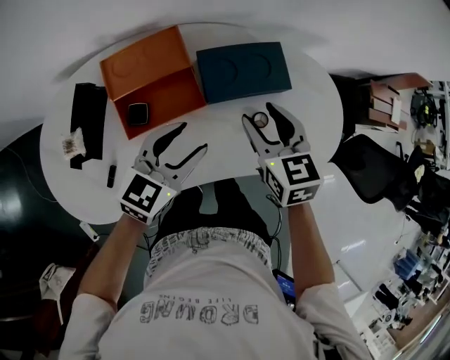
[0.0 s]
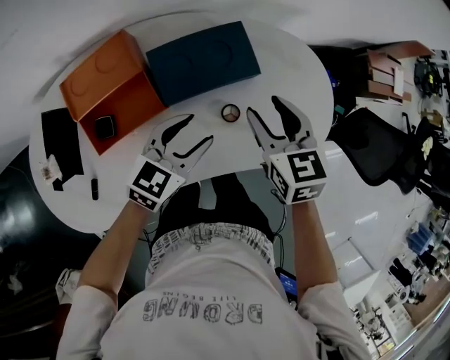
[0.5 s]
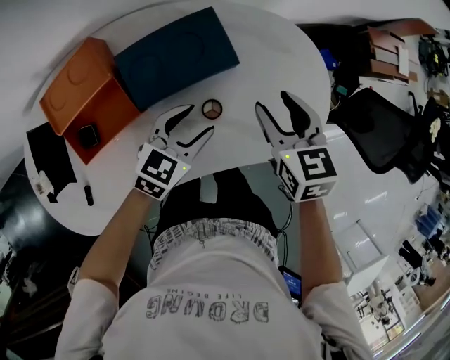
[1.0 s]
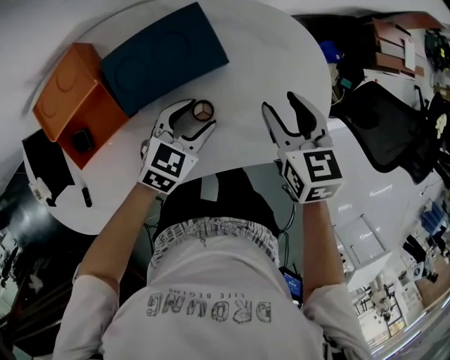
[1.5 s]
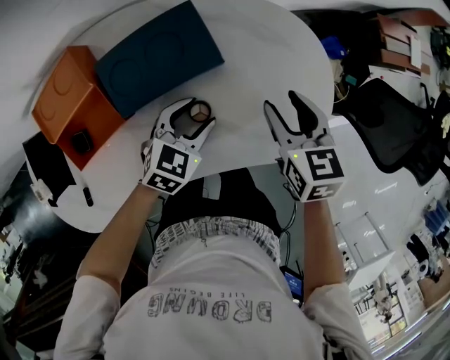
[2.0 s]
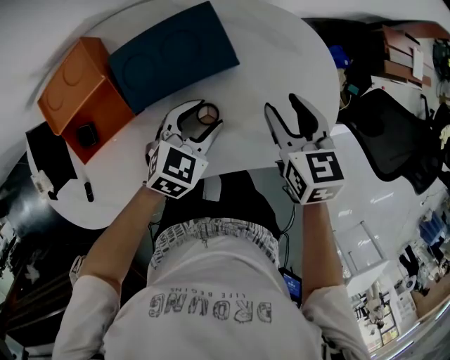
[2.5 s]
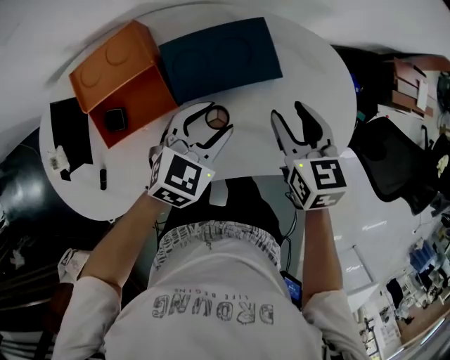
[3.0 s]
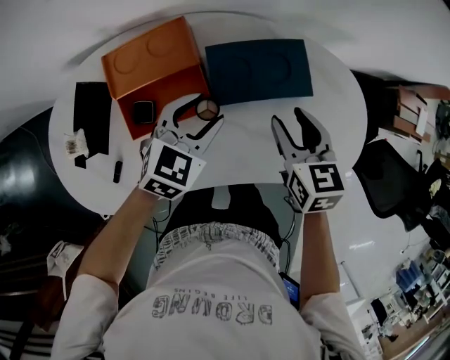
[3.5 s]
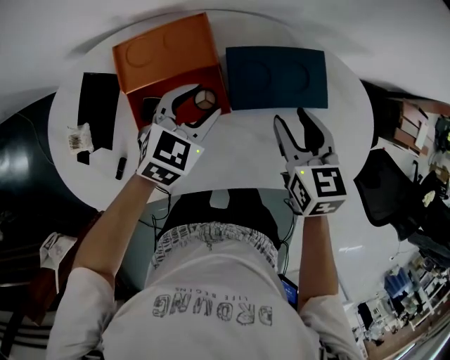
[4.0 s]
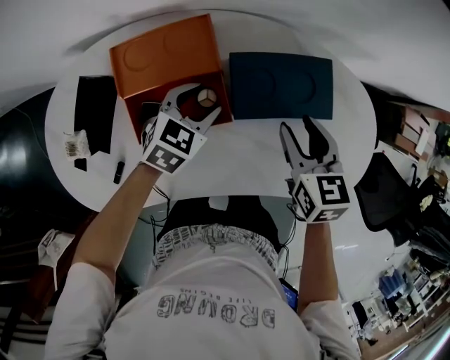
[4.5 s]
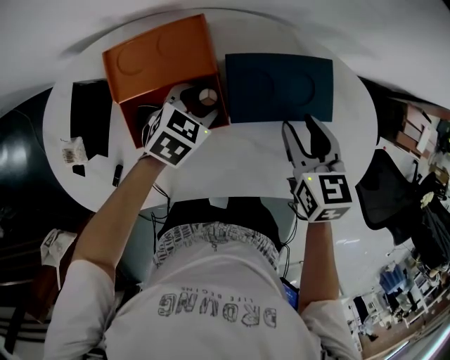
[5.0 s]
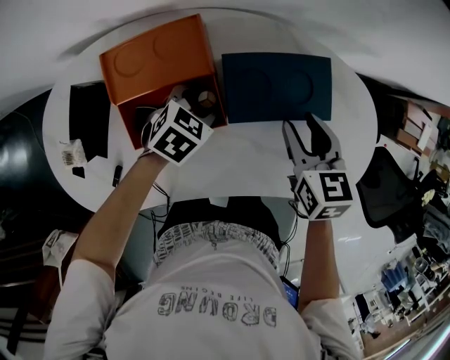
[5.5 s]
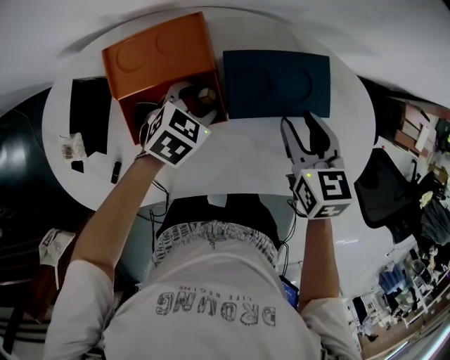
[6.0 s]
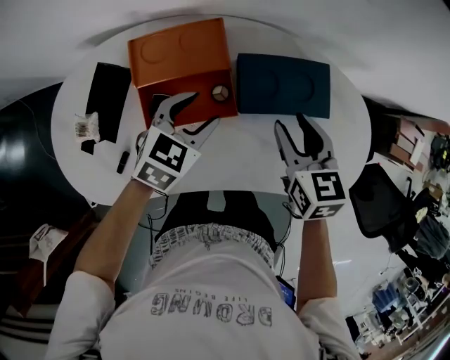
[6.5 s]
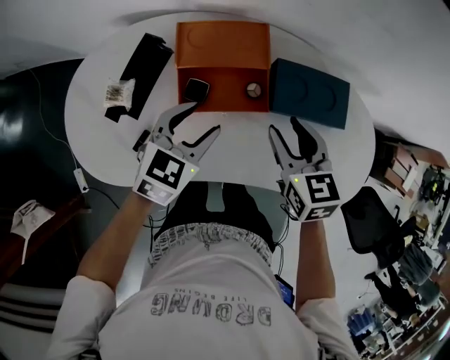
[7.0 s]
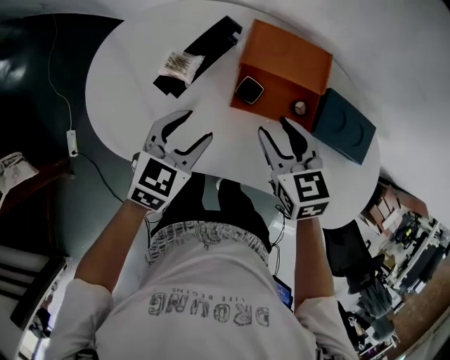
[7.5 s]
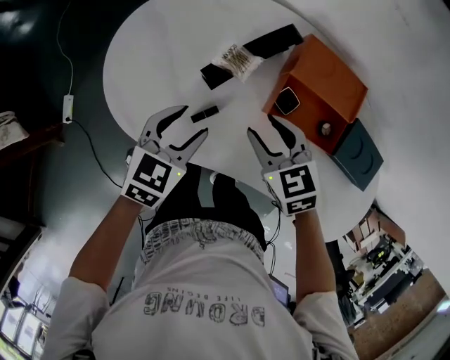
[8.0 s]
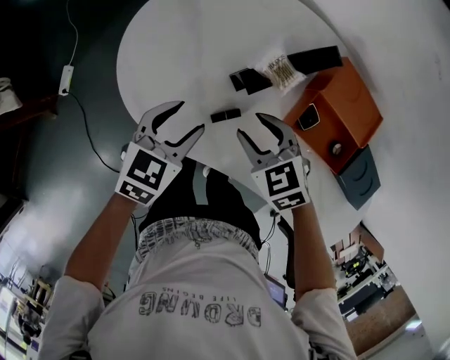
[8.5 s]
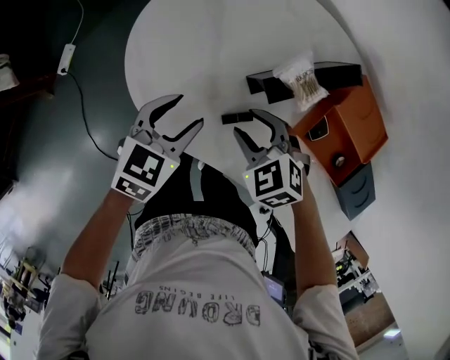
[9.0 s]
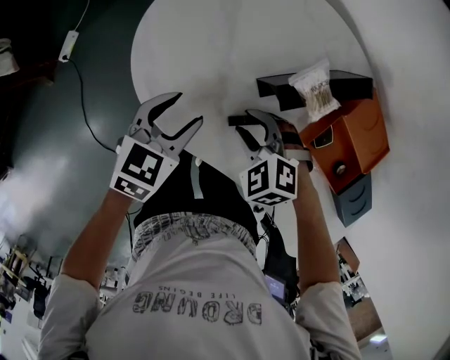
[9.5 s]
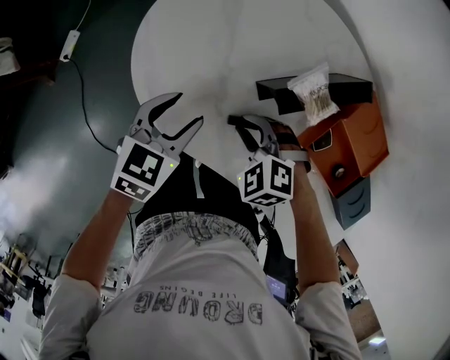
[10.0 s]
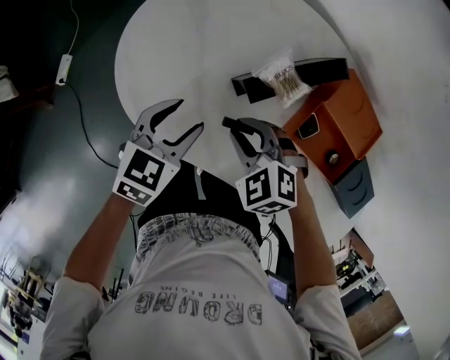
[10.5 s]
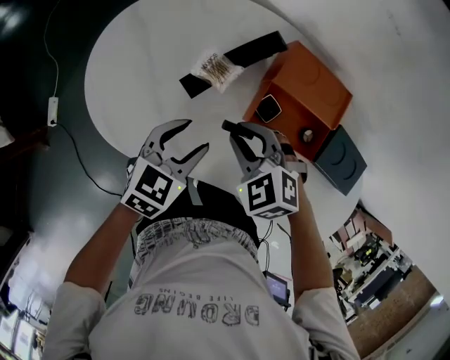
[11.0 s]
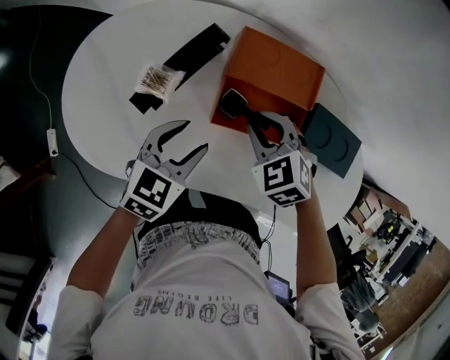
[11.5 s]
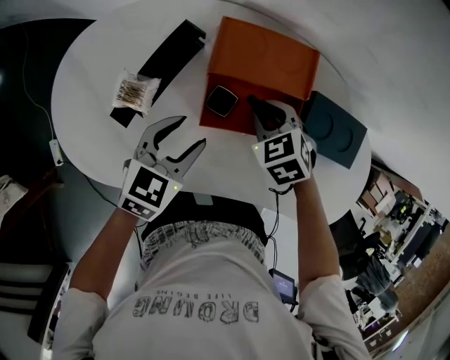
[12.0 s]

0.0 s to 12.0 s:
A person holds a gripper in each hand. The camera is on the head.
0.0 to 2.0 s: The left gripper is displaced to the right, downward and forward by about 25 cm, and turns by some 30 degrees. Meanwhile the right gripper goes roughly 25 cm to the right and downward.
2.0 to 4.0 s: The right gripper shifts approximately 20 cm to the left. Meanwhile the left gripper goes approximately 25 cm to the left and upward.
4.0 to 6.0 s: The left gripper shifts some 10 cm downward.
6.0 to 8.0 s: The left gripper moves approximately 40 cm, and rotates approximately 50 degrees. Meanwhile the right gripper changes place by approximately 40 cm, and swivels some 60 degrees.
8.0 to 10.0 s: The grippers both shift to the left and downward by some 15 cm. The right gripper rolls counterclockwise, seen from behind, by some 50 degrees.
10.0 to 12.0 s: The left gripper moves some 25 cm, and changes its angle by approximately 30 degrees, while the right gripper ends up about 30 cm from where it was, and rotates around the line of its fingers by some 50 degrees, clockwise from behind.

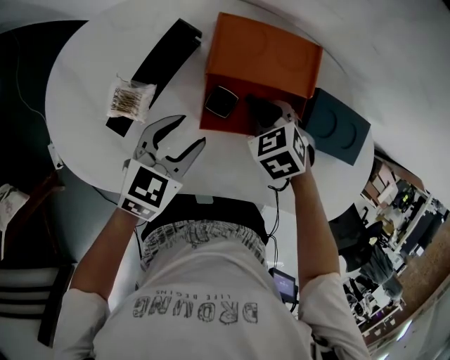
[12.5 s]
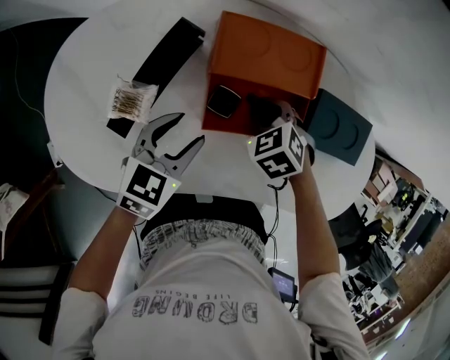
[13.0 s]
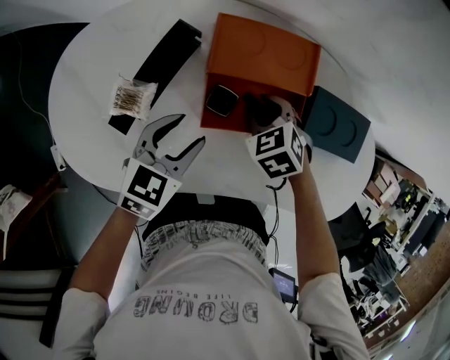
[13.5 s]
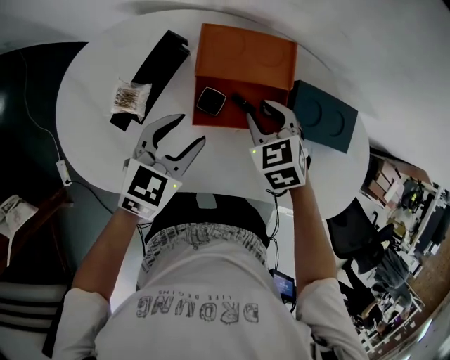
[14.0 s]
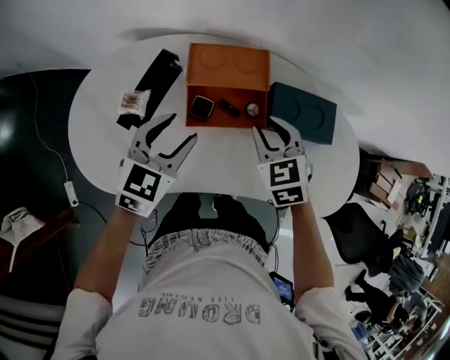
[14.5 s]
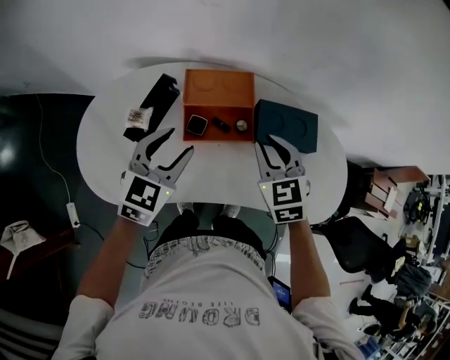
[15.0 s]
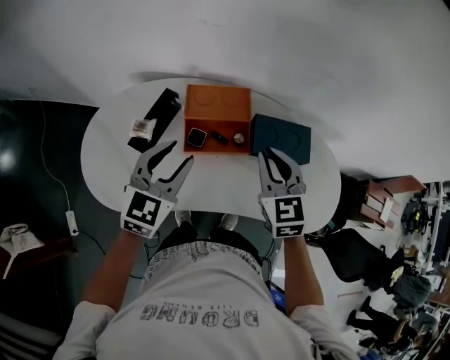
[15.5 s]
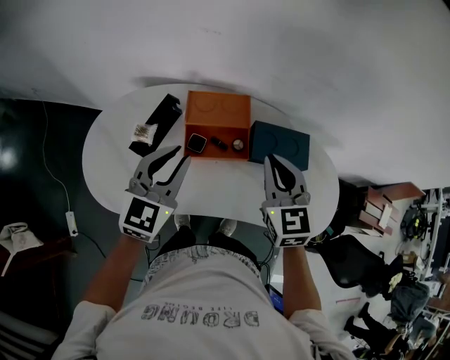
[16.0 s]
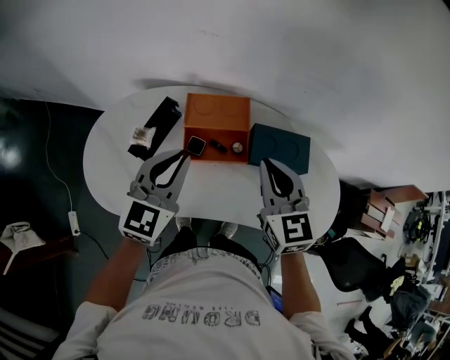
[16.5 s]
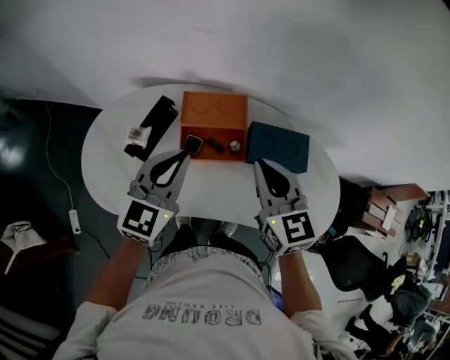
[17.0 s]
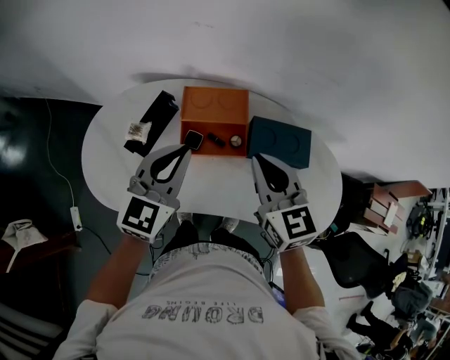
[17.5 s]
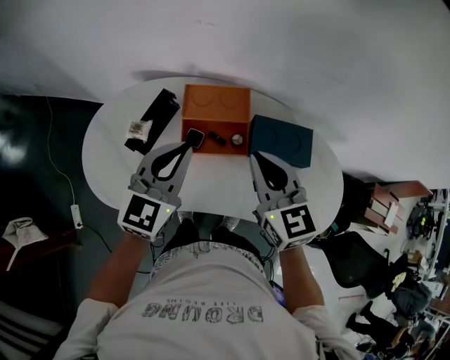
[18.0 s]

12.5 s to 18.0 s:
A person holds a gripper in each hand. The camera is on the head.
12.5 to 14.5 s: The right gripper heads upward and to the right, covering roughly 15 cm, and rotates some 30 degrees, while the left gripper is displaced upward by roughly 10 cm.
14.5 to 16.0 s: Both grippers travel together upward, about 15 cm. The left gripper closes, while the right gripper swivels roughly 20 degrees, and closes.
16.0 to 18.0 s: There are only small adjustments of the grippers.

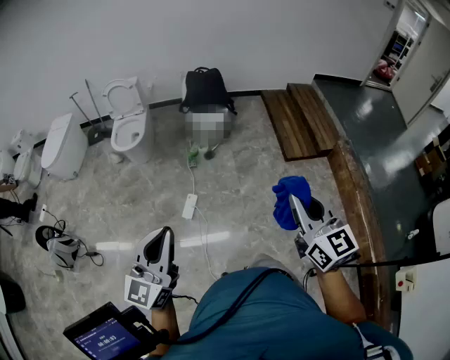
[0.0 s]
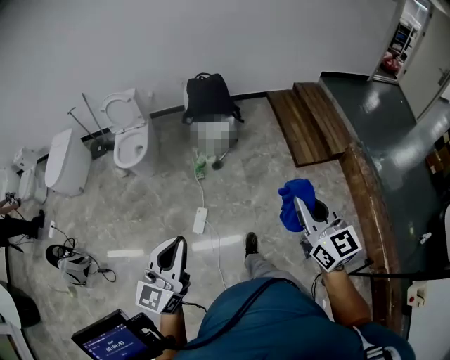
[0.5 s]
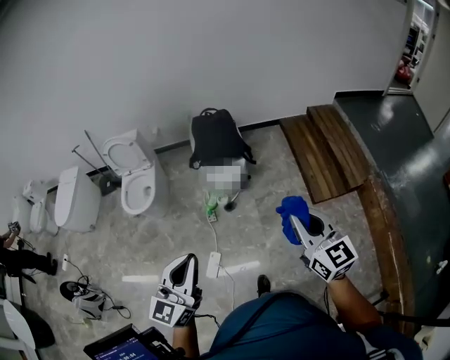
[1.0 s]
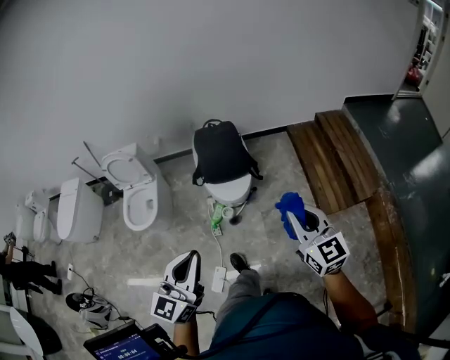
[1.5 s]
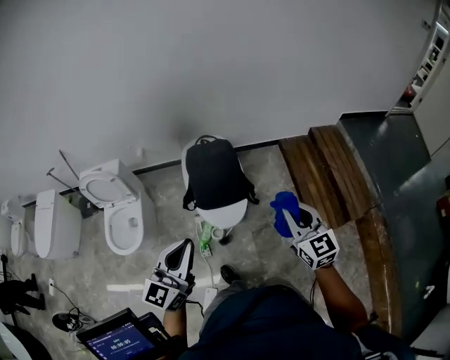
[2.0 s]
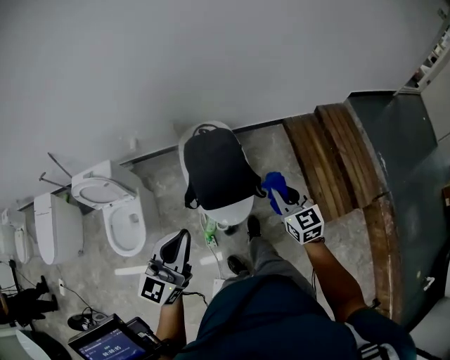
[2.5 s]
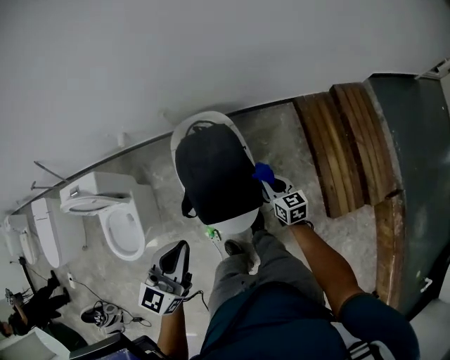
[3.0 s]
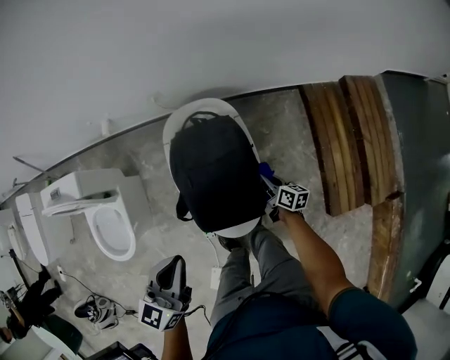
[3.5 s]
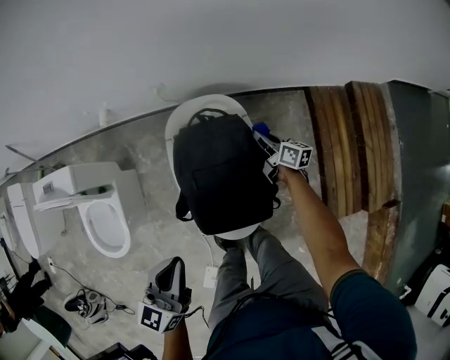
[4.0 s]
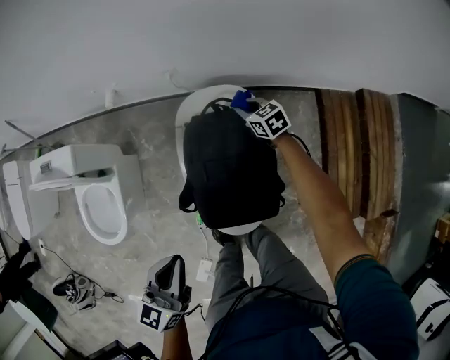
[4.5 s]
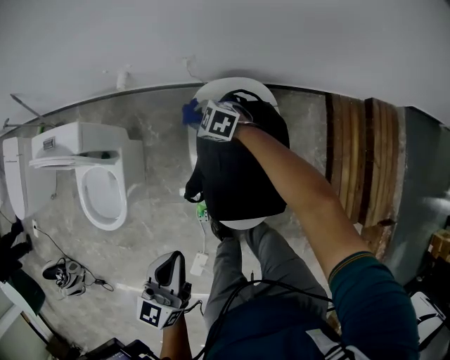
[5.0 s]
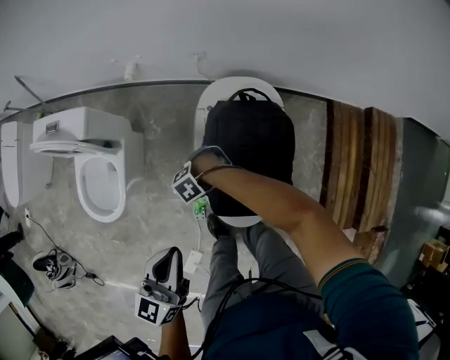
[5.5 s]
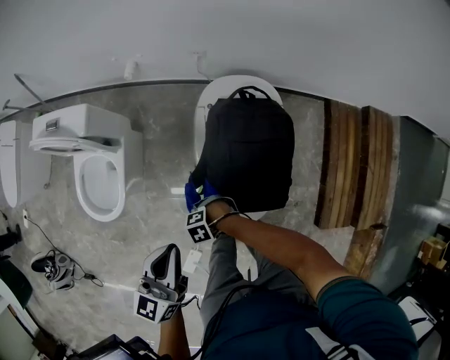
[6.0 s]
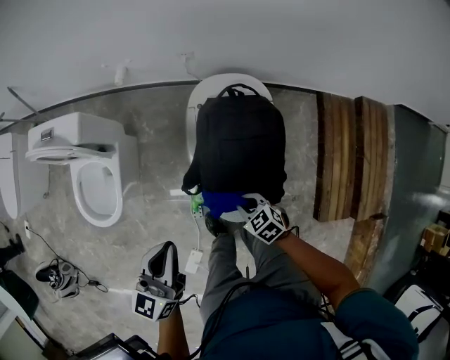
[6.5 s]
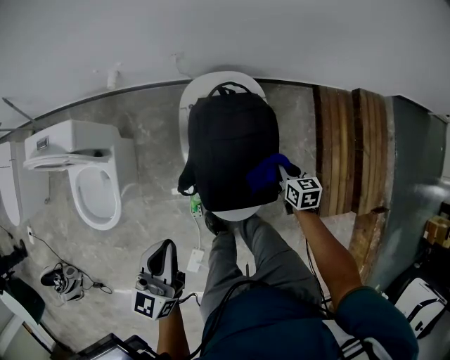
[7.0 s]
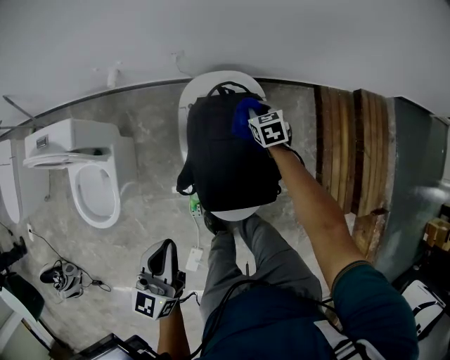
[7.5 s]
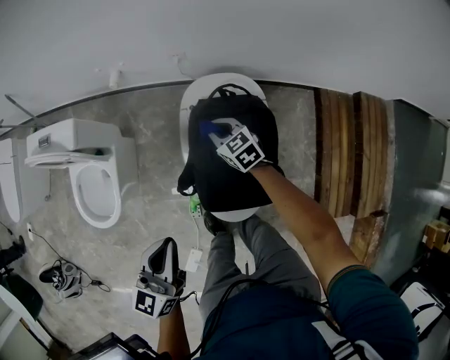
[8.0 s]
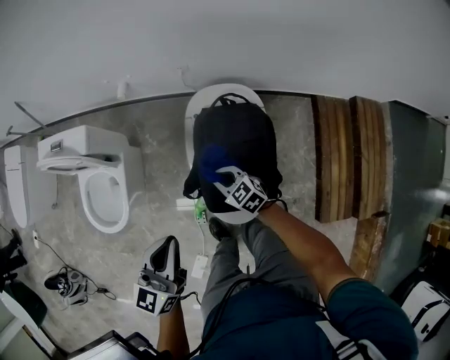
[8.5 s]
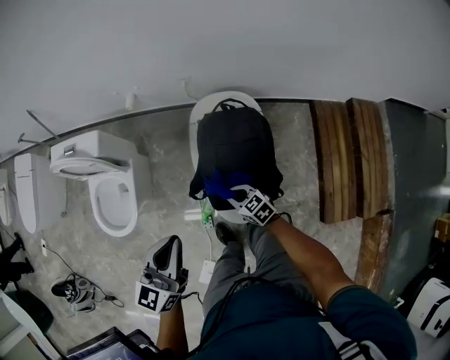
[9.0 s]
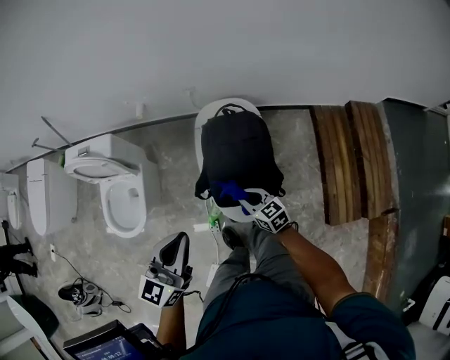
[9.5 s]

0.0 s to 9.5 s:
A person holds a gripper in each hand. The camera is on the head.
0.0 to 2.0 s: Both grippers are carried forward, about 70 cm.
2.0 to 4.0 s: The left gripper travels forward and downward by some 40 cm, and rotates approximately 30 degrees. Meanwhile the right gripper moves forward and downward, approximately 70 cm, and rolls clockwise, seen from behind, by some 50 degrees.
4.0 to 5.5 s: The left gripper changes place by about 10 cm; the right gripper changes place by about 40 cm, and tips its fingers downward by approximately 50 degrees.
5.5 to 7.5 s: The right gripper moves some 35 cm, and rotates around the line of its fingers by approximately 90 degrees, clockwise from behind.
7.5 to 9.5 s: The left gripper goes about 15 cm upward and backward. The right gripper heads backward and to the left, covering approximately 35 cm, and rotates approximately 30 degrees.
